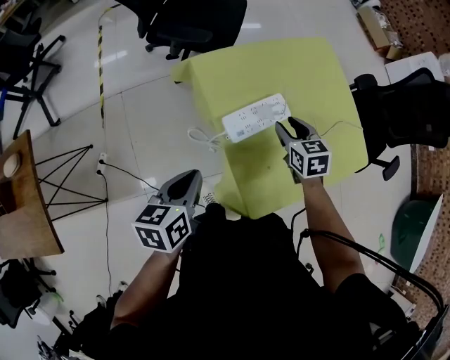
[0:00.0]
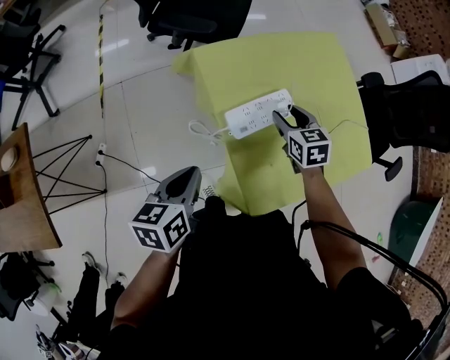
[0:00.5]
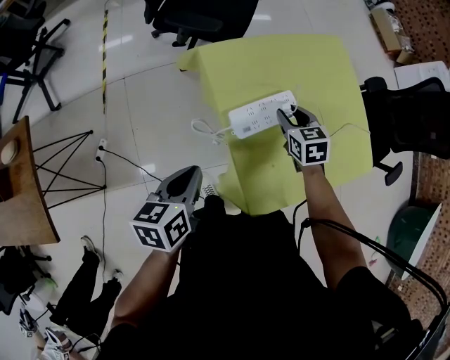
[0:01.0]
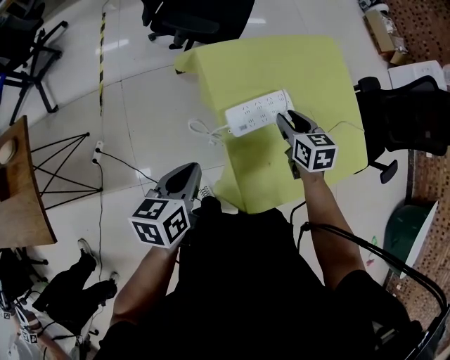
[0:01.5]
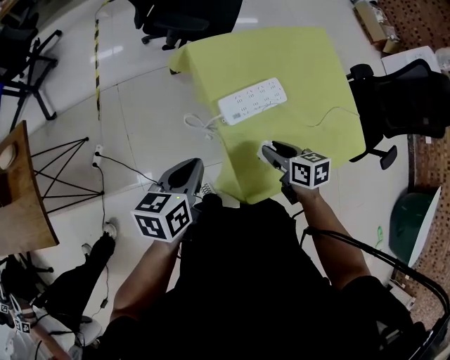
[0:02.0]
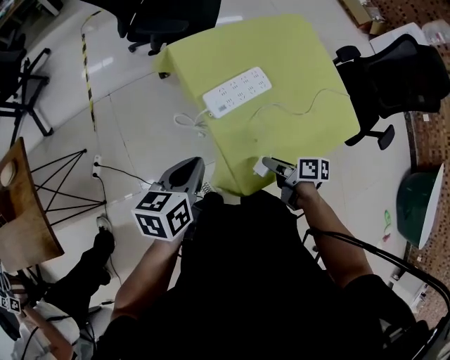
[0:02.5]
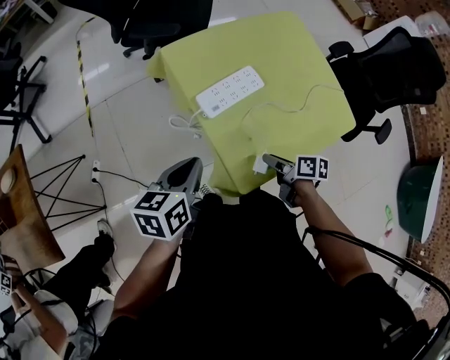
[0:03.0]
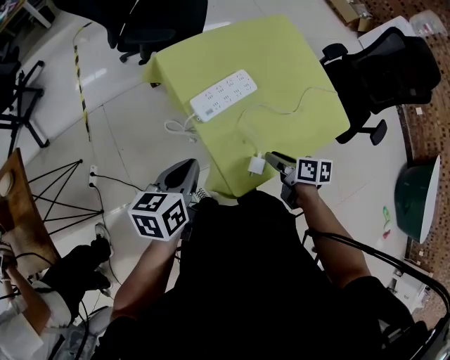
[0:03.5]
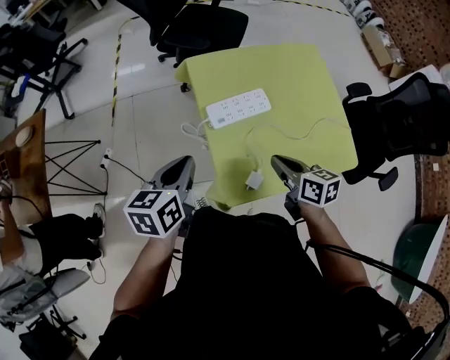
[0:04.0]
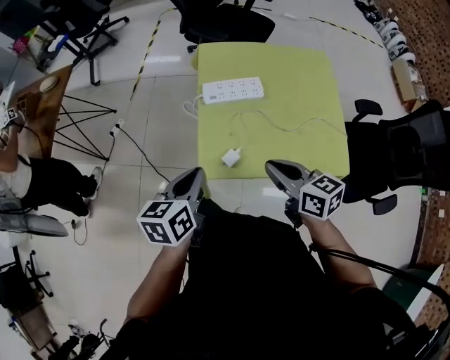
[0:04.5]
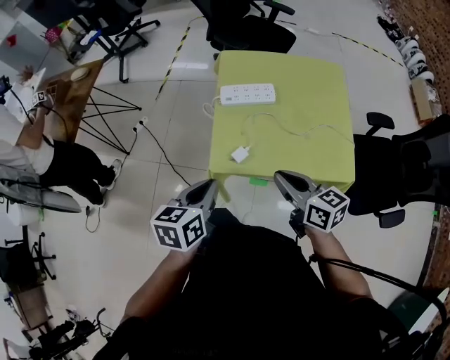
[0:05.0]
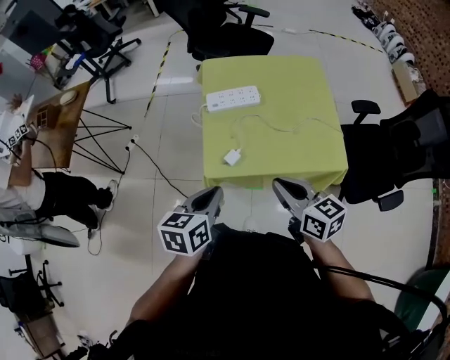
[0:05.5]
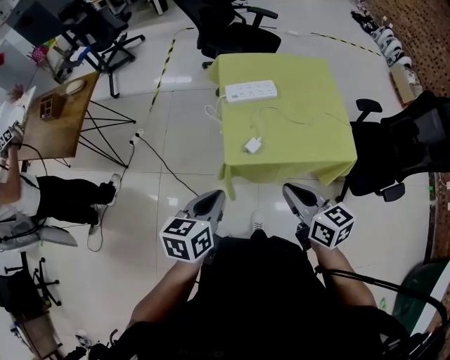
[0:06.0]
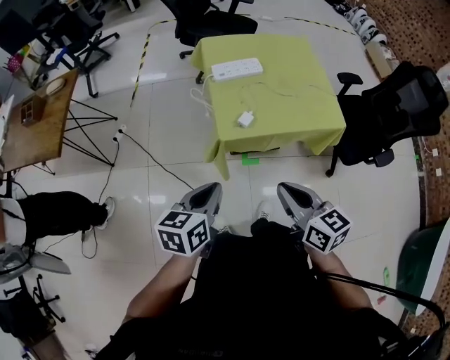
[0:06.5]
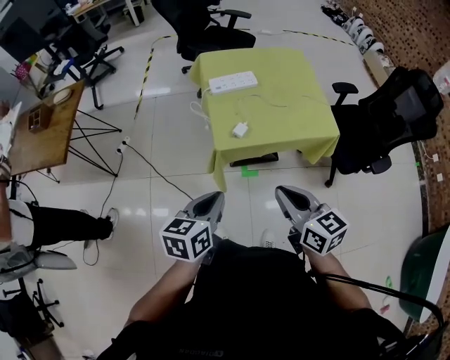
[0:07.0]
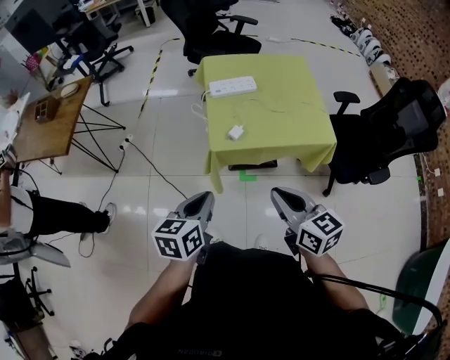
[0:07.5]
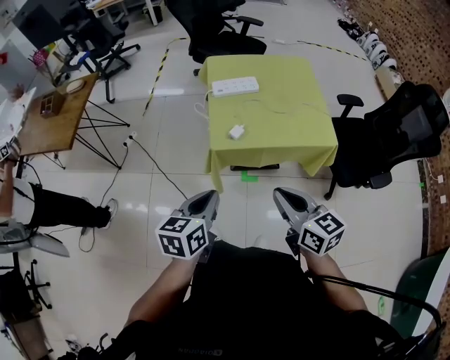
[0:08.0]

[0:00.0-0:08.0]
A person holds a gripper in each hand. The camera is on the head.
0:00.0 to 0:02.0: The right gripper goes roughly 10 cm backward, and turns by roughly 30 degrees.
0:02.0 to 0:04.0: The left gripper travels upward by about 5 cm. Meanwhile the right gripper travels upward and to the right by about 10 cm, and closes its fingers.
0:04.0 to 0:06.0: The right gripper moves backward and upward, about 25 cm, and rotates approximately 20 degrees. Meanwhile the left gripper heads backward, covering roughly 30 cm.
0:06.0 to 0:08.0: The two grippers go approximately 10 cm backward.

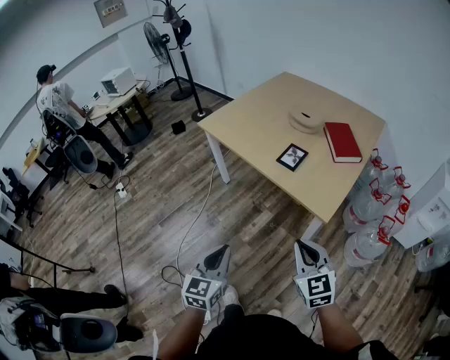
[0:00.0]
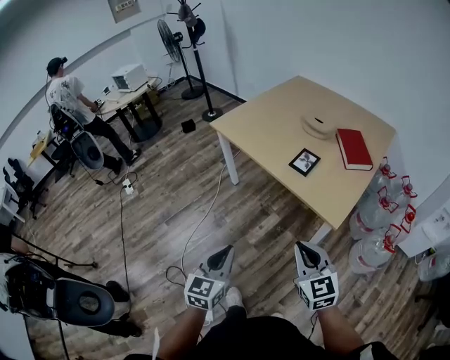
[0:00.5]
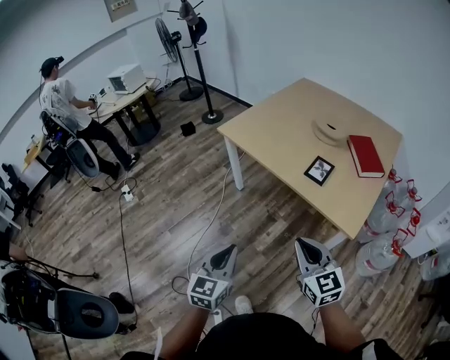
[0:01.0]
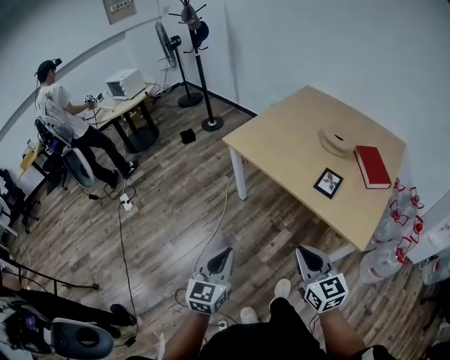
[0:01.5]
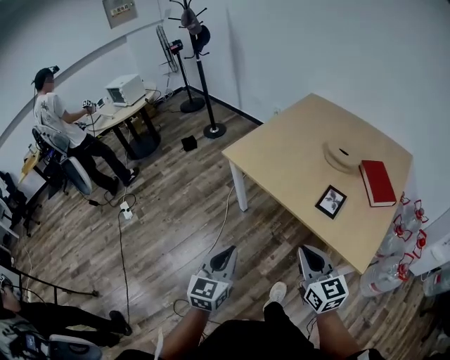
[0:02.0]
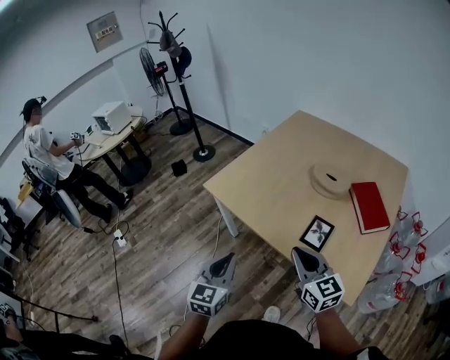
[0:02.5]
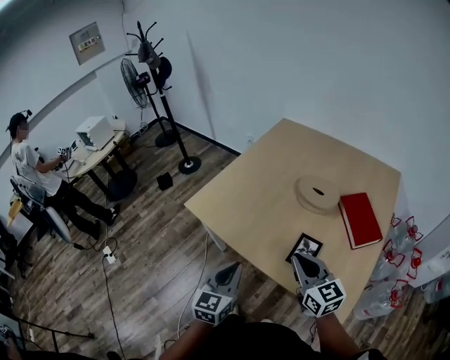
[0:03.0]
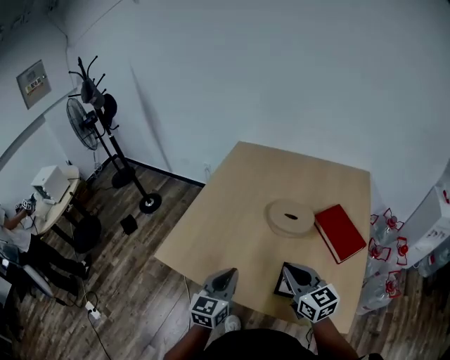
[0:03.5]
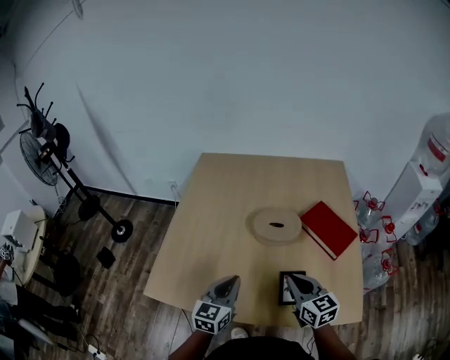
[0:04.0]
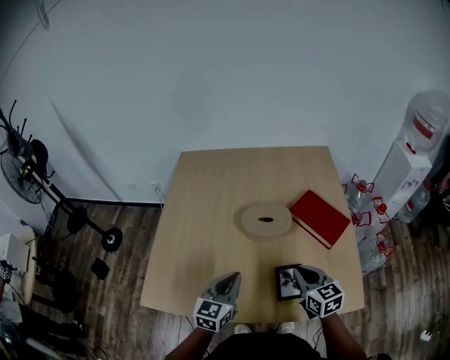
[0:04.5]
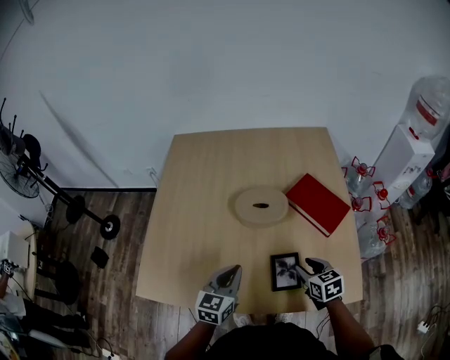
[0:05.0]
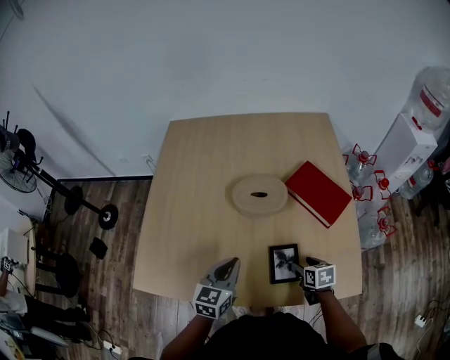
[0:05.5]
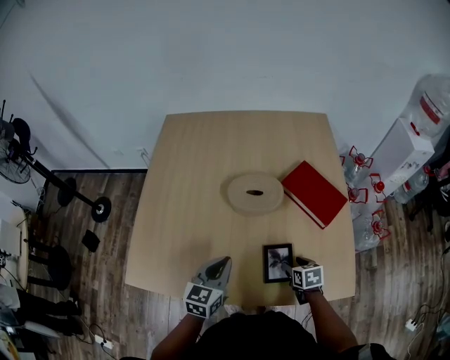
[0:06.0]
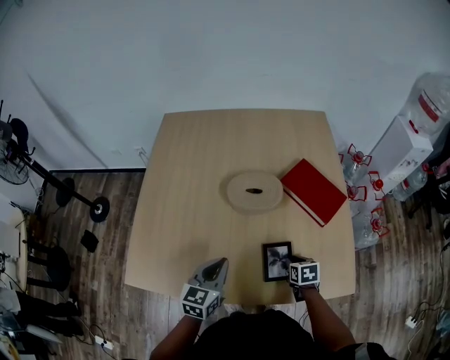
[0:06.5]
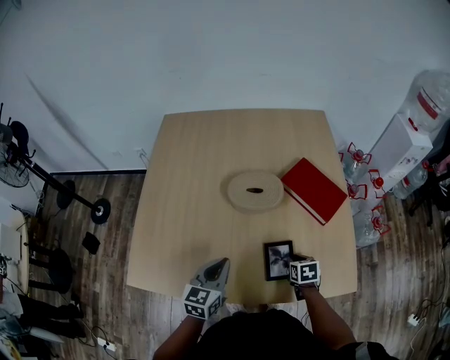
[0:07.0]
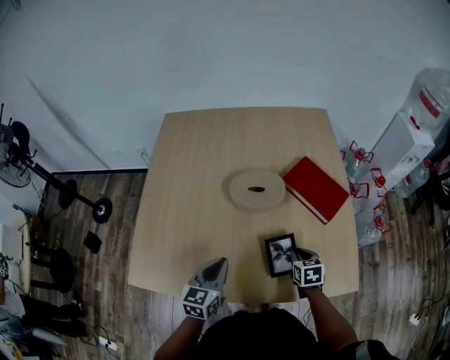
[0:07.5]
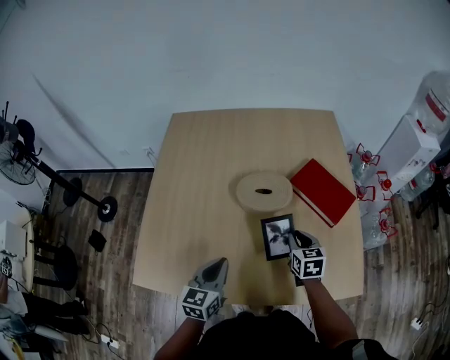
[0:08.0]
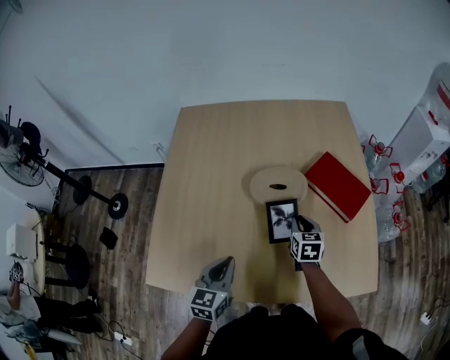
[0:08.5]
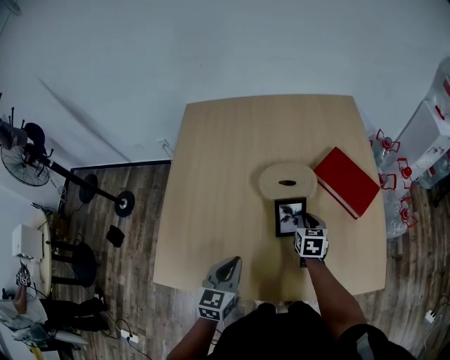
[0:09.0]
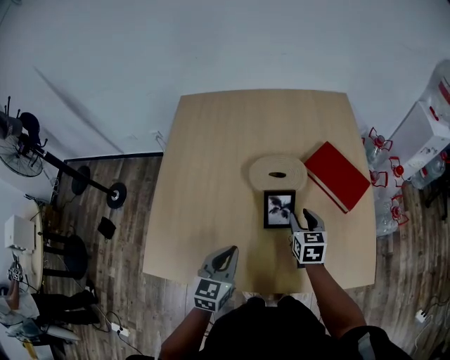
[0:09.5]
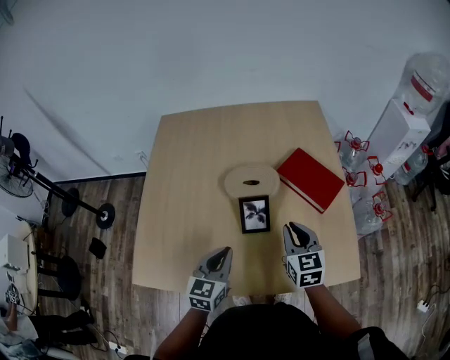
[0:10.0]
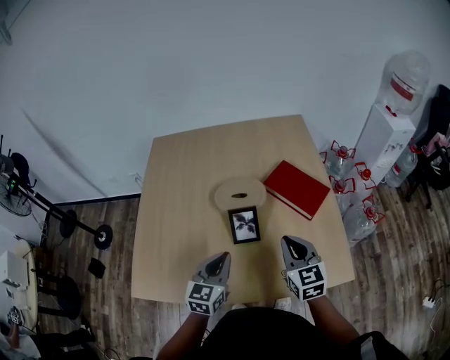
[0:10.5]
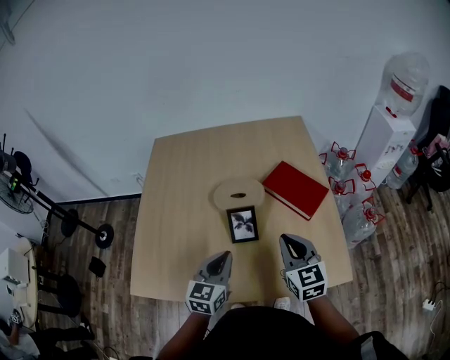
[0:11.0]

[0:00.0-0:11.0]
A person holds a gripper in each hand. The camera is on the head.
0:00.0 to 0:02.0: The two grippers go roughly 30 cm forward and to the left.
0:02.0 to 0:03.5: The grippers both shift forward and to the right by about 40 cm. The left gripper swivels roughly 20 degrees.
0:03.5 to 0:05.5: The left gripper heads forward, downward and to the right, covering about 15 cm, and turns by about 30 degrees, while the right gripper travels downward and to the right by about 30 cm, tilts its fingers about 40 degrees downward, and opens.
0:05.5 to 0:07.5: The right gripper closes up.
0:07.5 to 0:09.0: The right gripper shifts about 15 cm forward and to the left; the left gripper goes about 5 cm to the left.
0:09.0 to 0:11.0: The right gripper travels upward and backward by roughly 25 cm, turns by roughly 30 degrees, and opens and closes again, while the left gripper shifts about 15 cm to the right and upward.

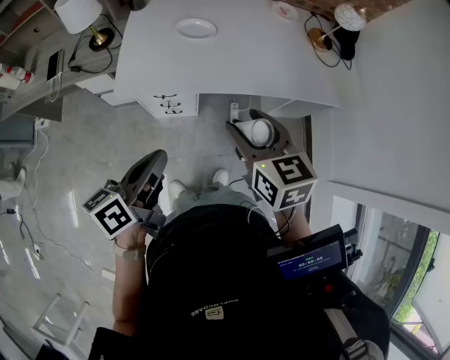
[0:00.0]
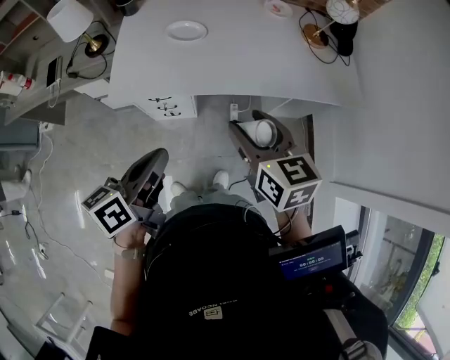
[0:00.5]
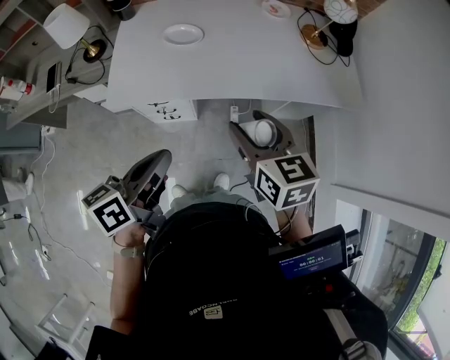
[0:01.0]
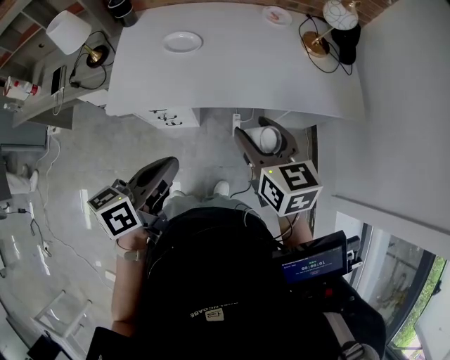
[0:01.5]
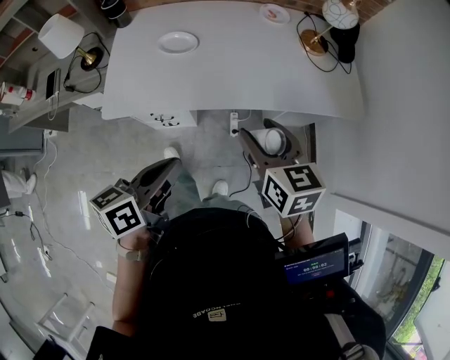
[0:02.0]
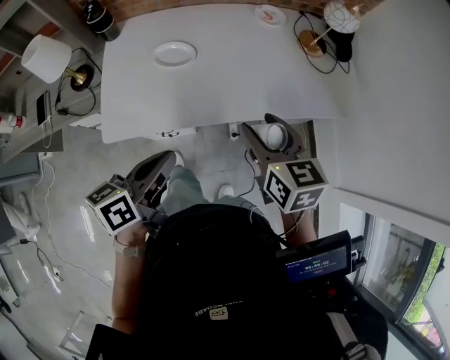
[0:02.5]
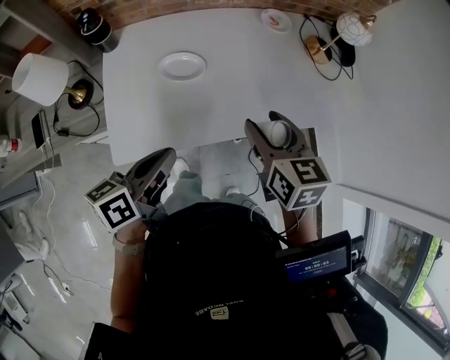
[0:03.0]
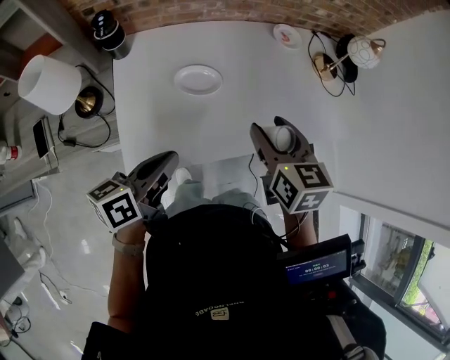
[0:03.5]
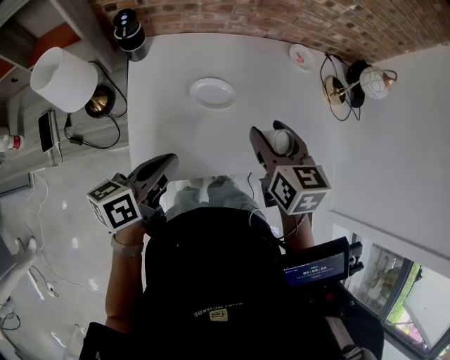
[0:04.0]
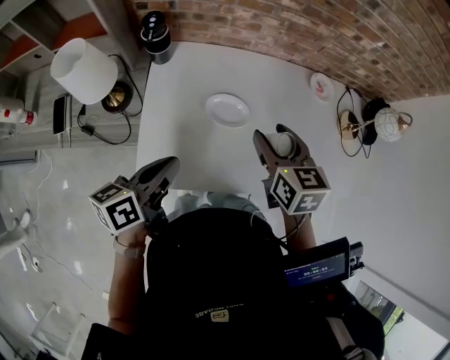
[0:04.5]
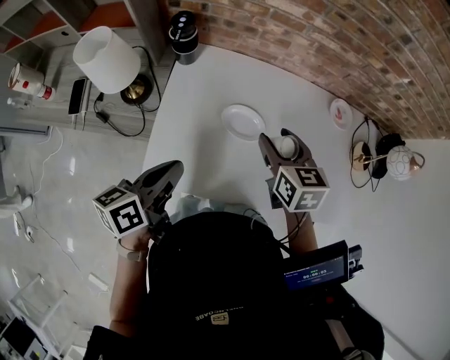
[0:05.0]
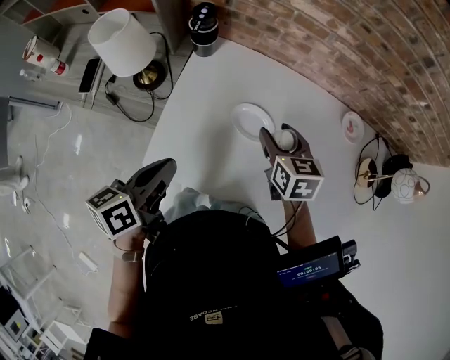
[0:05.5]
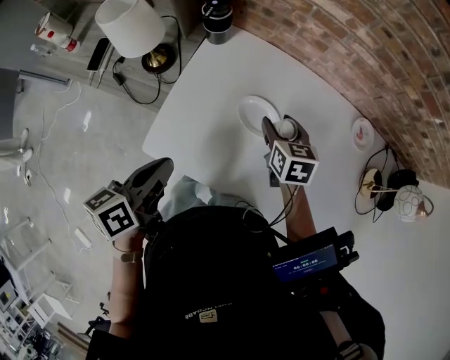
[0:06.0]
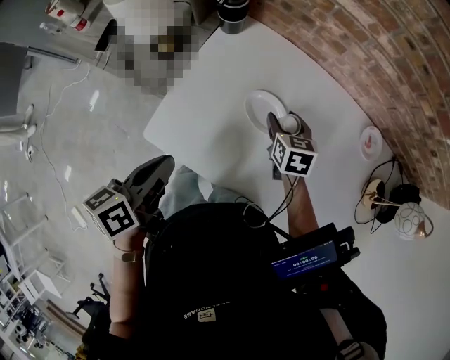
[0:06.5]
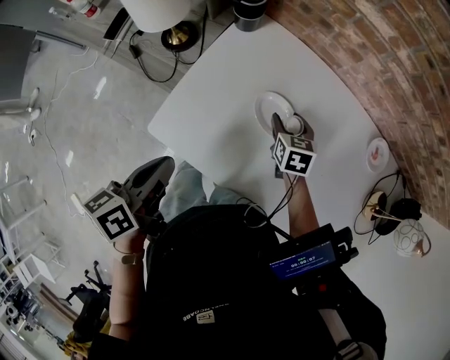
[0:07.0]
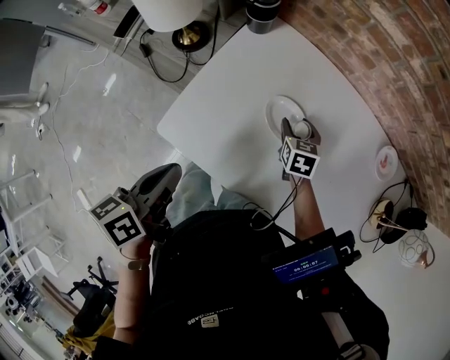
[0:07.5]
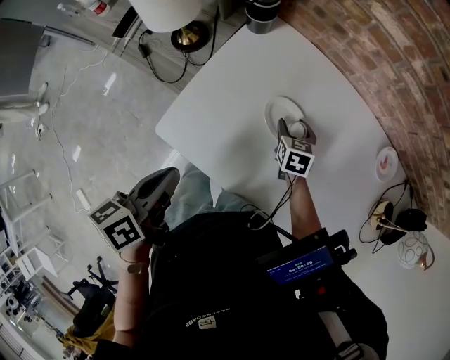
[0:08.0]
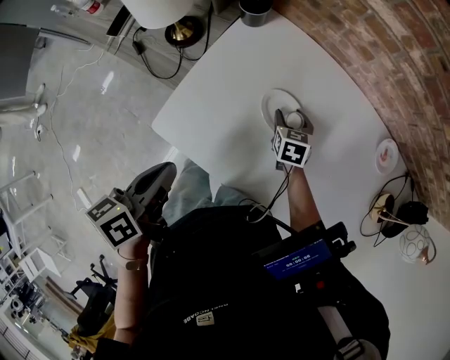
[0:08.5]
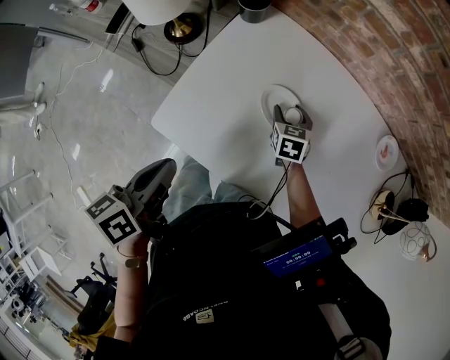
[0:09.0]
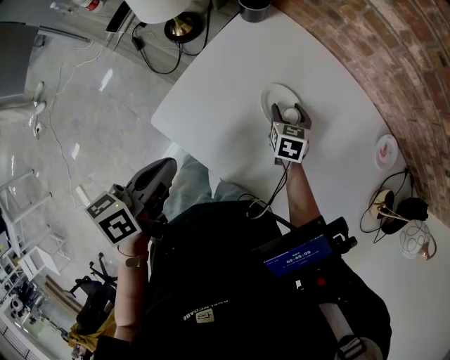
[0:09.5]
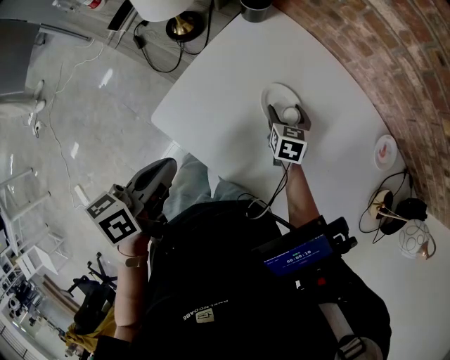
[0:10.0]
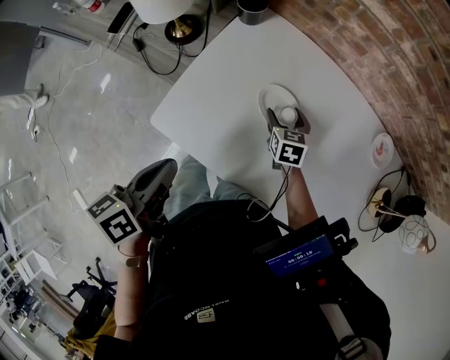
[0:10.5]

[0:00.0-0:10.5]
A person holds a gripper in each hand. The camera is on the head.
0:00.0 to 0:02.0: The grippers both shift to the right and forward by approximately 15 cm.
0:02.0 to 0:04.0: Both grippers travel together to the left and forward, about 30 cm.
0:04.0 to 0:06.5: The left gripper turns by approximately 40 degrees. Meanwhile the right gripper is displaced downward by roughly 20 cm, and changes its angle by roughly 30 degrees.
0:06.5 to 0:08.5: The right gripper goes roughly 10 cm downward.
0:08.5 to 0:10.5: The grippers make only small movements.
